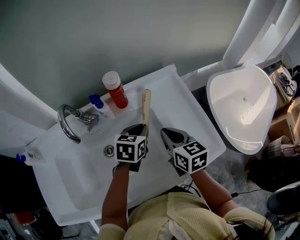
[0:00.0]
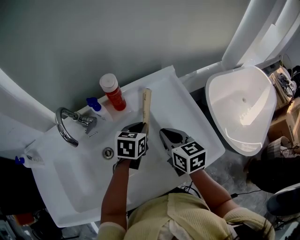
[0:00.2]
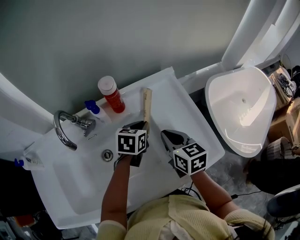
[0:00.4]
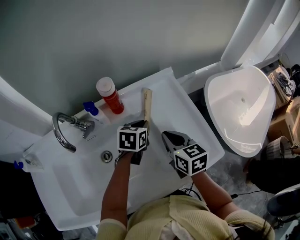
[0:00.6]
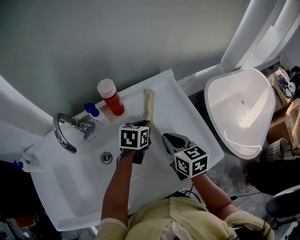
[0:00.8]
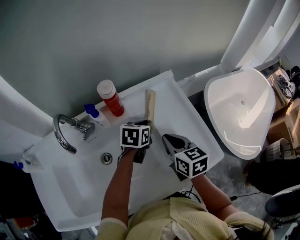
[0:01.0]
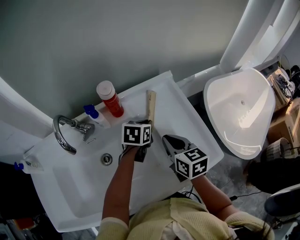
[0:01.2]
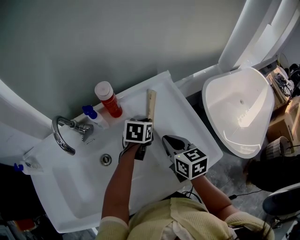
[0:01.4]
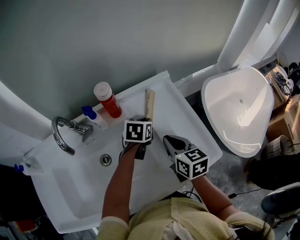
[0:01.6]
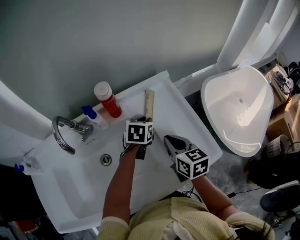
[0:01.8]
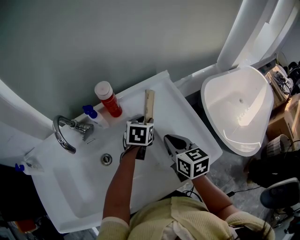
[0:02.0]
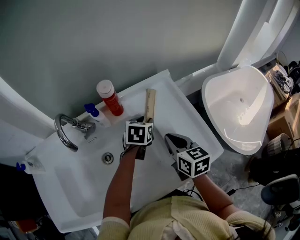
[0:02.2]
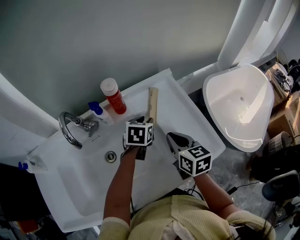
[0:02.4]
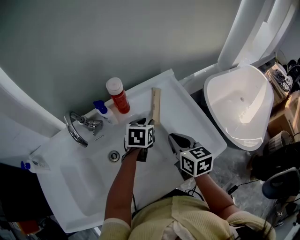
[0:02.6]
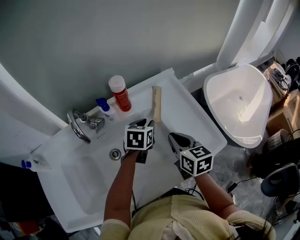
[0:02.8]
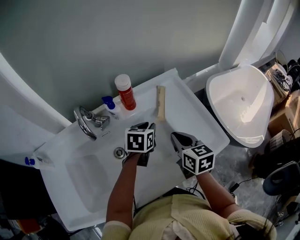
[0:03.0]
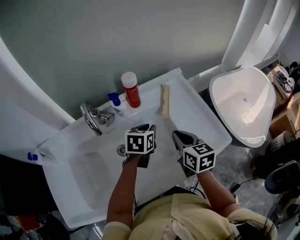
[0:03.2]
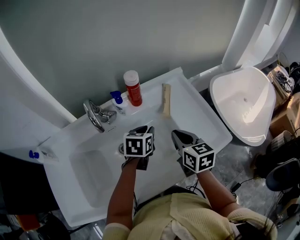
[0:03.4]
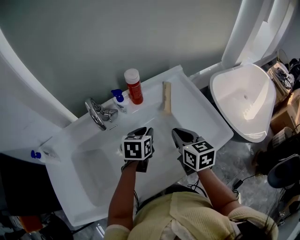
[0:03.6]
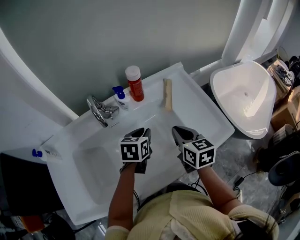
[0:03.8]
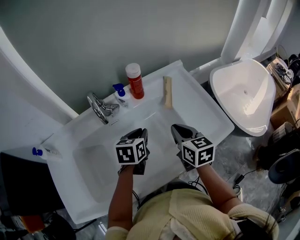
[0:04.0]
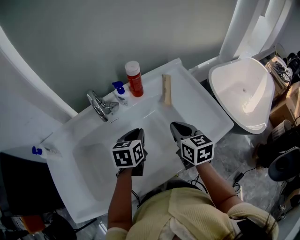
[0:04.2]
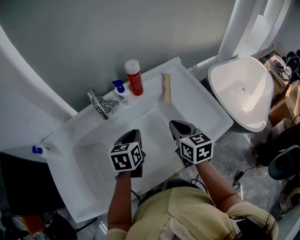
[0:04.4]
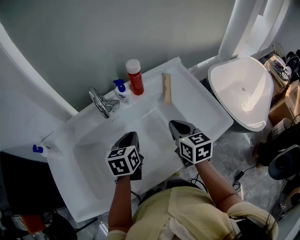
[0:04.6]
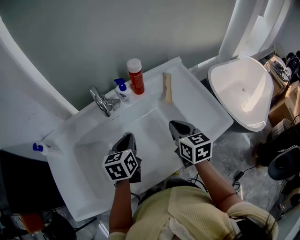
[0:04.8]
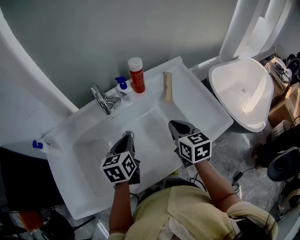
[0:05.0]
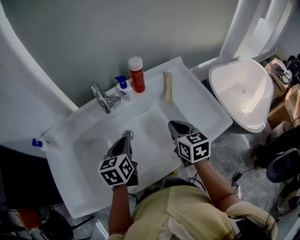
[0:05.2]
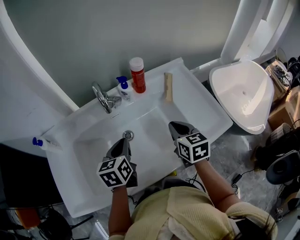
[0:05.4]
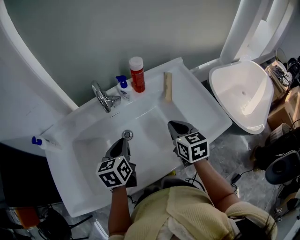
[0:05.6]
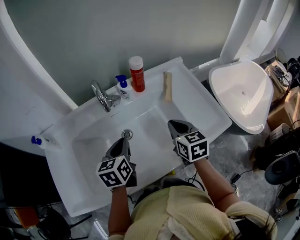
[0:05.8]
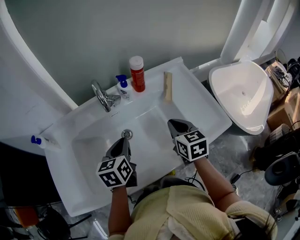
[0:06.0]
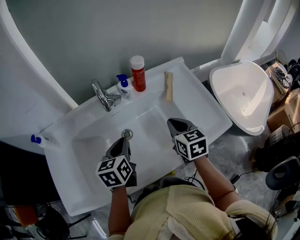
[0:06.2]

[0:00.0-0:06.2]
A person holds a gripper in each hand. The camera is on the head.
0:00.0 to 0:01.6: The left gripper is displaced forward by roughly 5 cm.
0:01.6 to 0:03.2: The left gripper goes some 10 cm backward and to the left. The right gripper changes place by about 5 cm.
0:03.2 to 0:04.6: The left gripper shifts roughly 15 cm to the left and backward. Meanwhile the right gripper changes place by approximately 5 cm.
0:04.6 to 0:06.2: The left gripper changes place by approximately 5 cm.

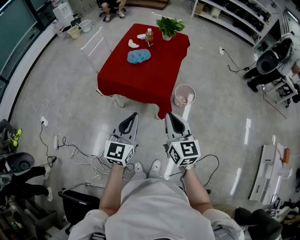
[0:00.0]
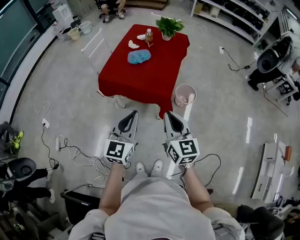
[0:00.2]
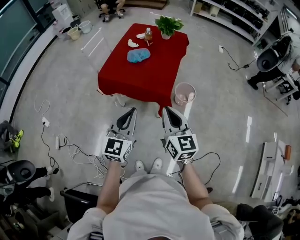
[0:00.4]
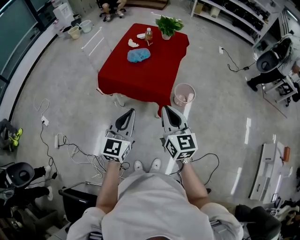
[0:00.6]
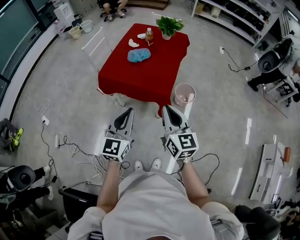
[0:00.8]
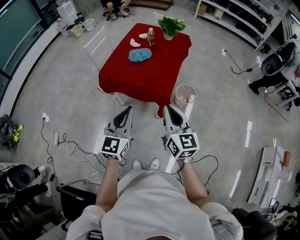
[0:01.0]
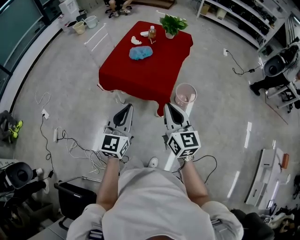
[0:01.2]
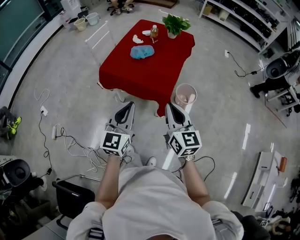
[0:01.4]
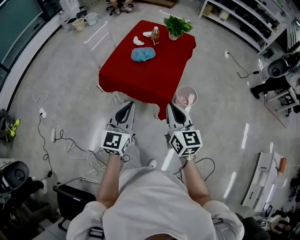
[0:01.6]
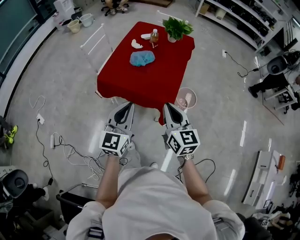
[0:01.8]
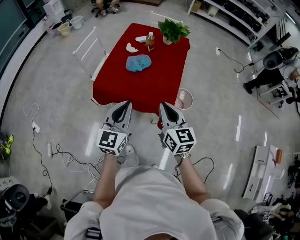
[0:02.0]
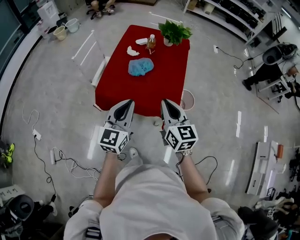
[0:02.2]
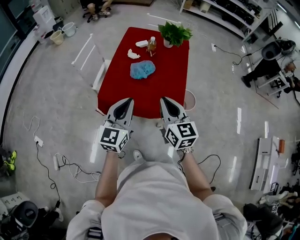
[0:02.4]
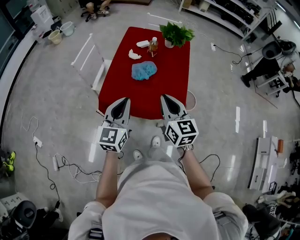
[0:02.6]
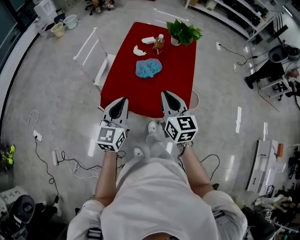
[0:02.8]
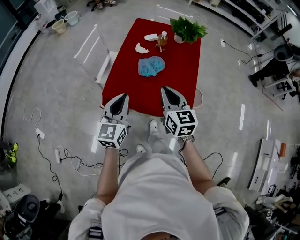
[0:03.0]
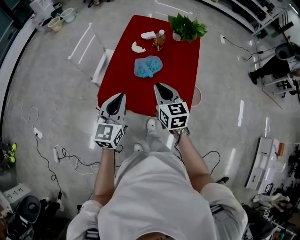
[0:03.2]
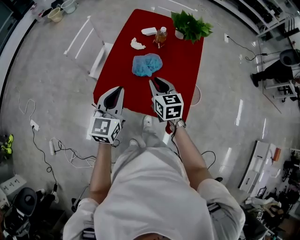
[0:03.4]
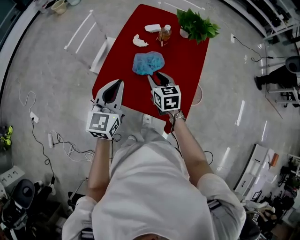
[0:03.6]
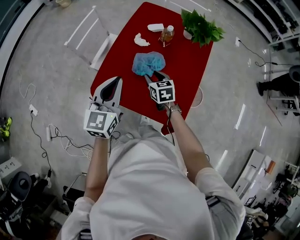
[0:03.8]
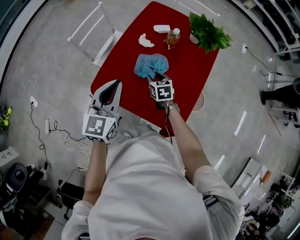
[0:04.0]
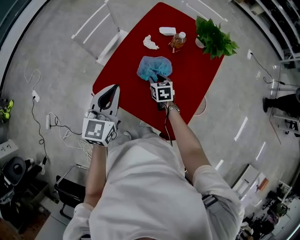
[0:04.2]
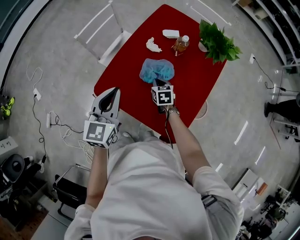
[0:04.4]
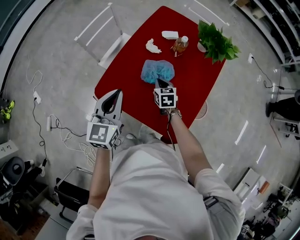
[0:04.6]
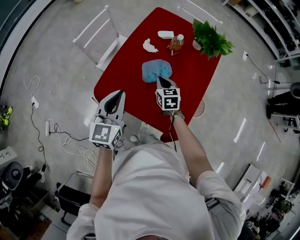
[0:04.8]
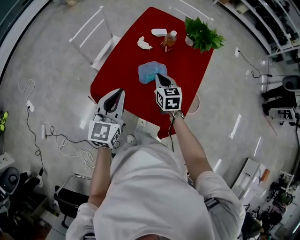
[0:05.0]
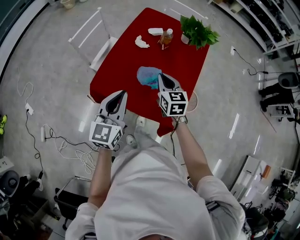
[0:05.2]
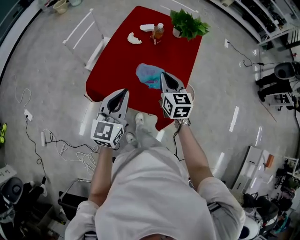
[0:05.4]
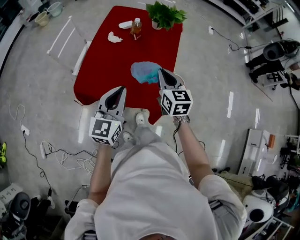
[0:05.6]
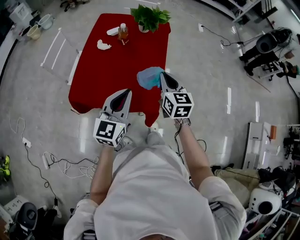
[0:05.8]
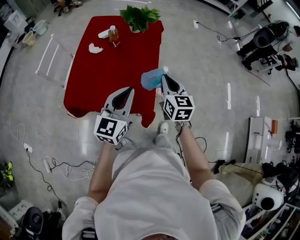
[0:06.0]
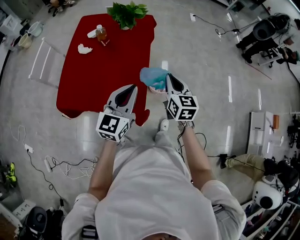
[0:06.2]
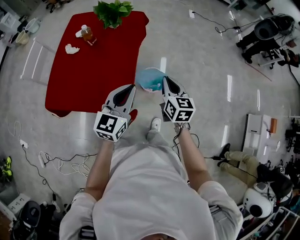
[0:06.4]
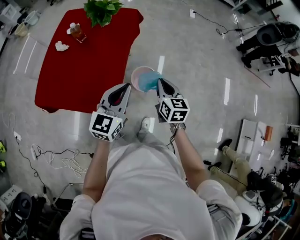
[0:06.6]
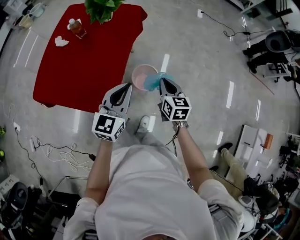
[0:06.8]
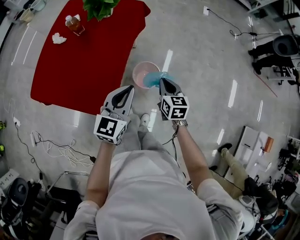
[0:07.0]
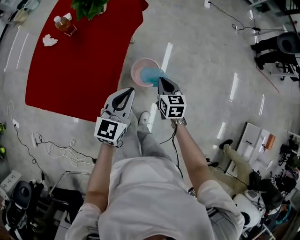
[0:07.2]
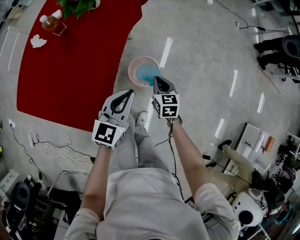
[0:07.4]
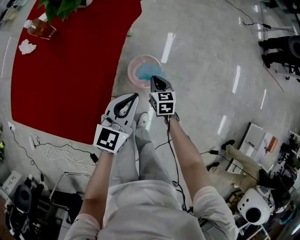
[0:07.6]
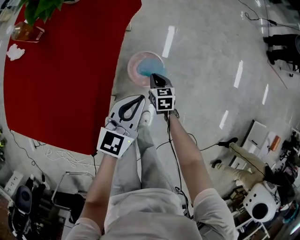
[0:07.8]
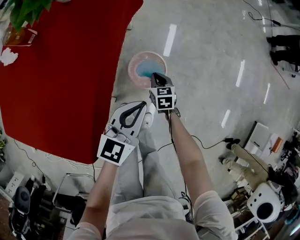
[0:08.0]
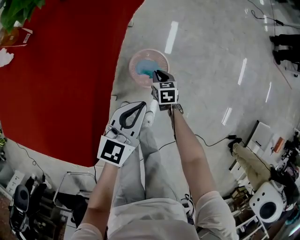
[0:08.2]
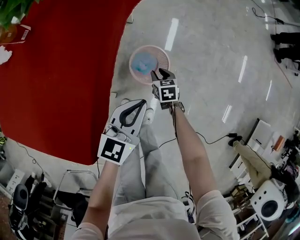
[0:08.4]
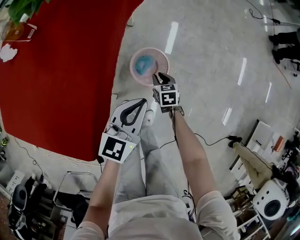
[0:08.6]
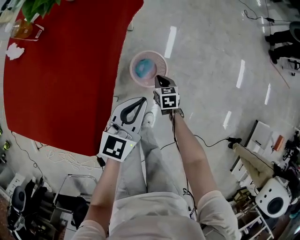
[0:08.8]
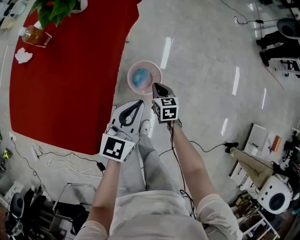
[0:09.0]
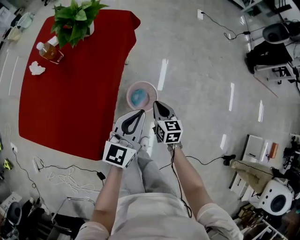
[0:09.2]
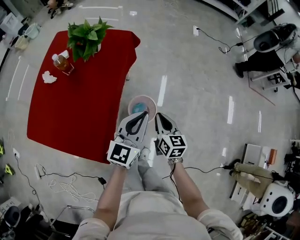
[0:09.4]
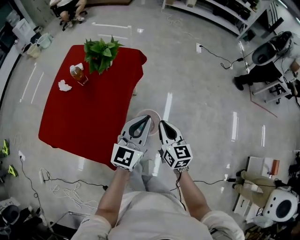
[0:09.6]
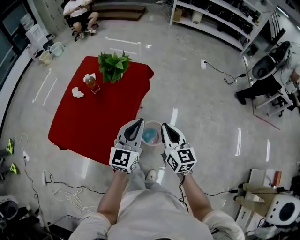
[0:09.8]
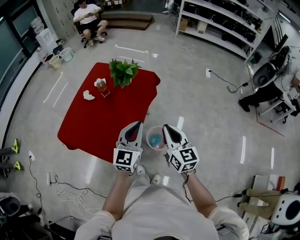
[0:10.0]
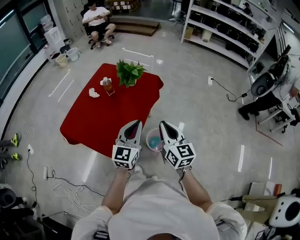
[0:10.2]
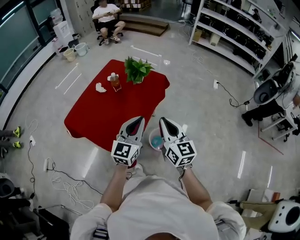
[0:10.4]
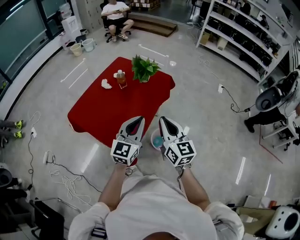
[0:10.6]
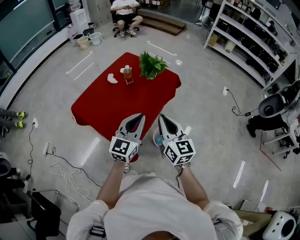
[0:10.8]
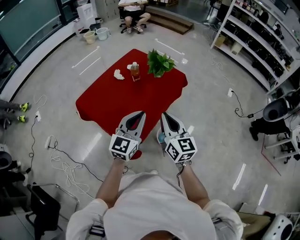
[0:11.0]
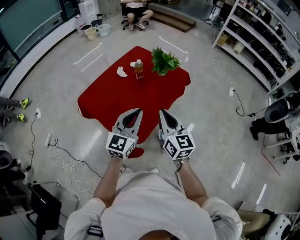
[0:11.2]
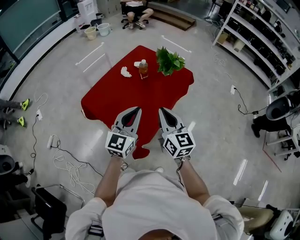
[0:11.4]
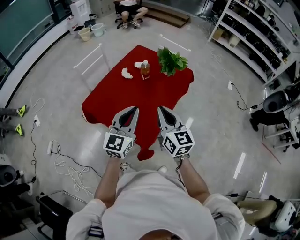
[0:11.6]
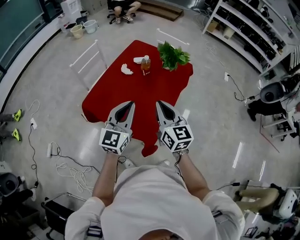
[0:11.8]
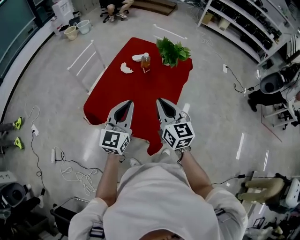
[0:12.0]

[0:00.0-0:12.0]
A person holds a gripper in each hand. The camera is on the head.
0:00.0 to 0:01.6: Both grippers move forward, approximately 5 cm.
0:01.6 to 0:03.0: The grippers both shift forward and to the left by some 30 cm.
0:03.0 to 0:04.4: The left gripper heads forward, covering about 10 cm, while the right gripper heads downward and forward, covering some 35 cm, tilts its fingers roughly 30 degrees downward, and opens, then closes once more.
0:04.4 to 0:06.0: The right gripper shifts by about 40 cm, and turns by some 40 degrees; the left gripper shifts by approximately 30 cm, and swivels about 30 degrees.
0:06.0 to 0:07.6: The left gripper goes some 40 cm to the right, downward and forward. The right gripper moves downward, to the right and forward, some 50 cm, and turns by roughly 30 degrees.
0:07.6 to 0:09.0: The left gripper goes downward and returns, about 10 cm each way. The right gripper travels downward and back again, some 20 cm each way, and opens, then closes again.
0:09.0 to 0:10.4: The left gripper shifts some 30 cm upward, and turns by some 30 degrees. Meanwhile the right gripper travels upward by about 50 cm, and angles its fingers upward, by about 40 degrees.
0:10.4 to 0:12.0: The two grippers go some 30 cm to the left.

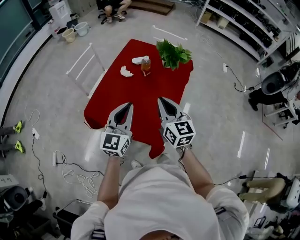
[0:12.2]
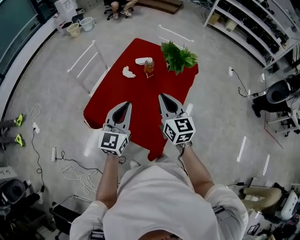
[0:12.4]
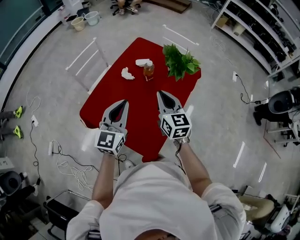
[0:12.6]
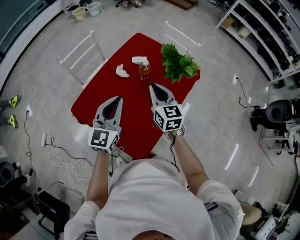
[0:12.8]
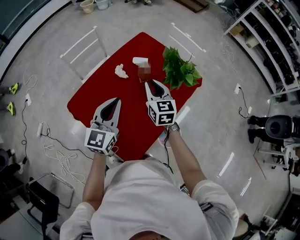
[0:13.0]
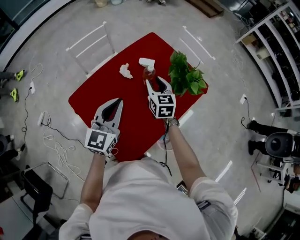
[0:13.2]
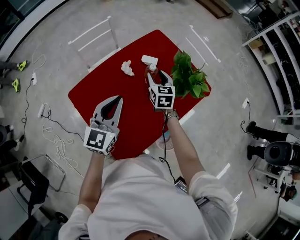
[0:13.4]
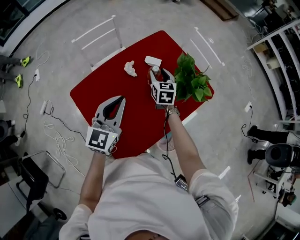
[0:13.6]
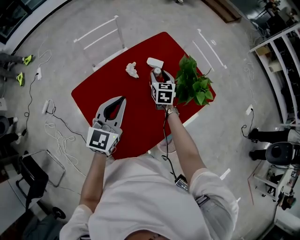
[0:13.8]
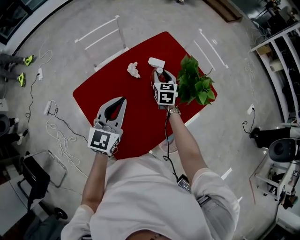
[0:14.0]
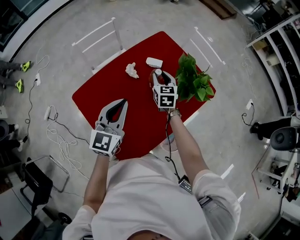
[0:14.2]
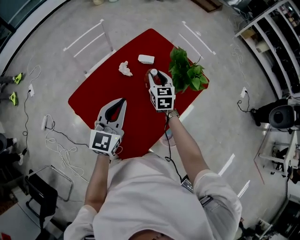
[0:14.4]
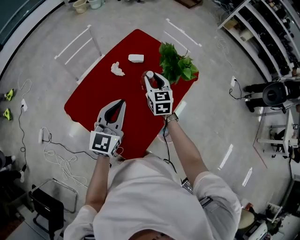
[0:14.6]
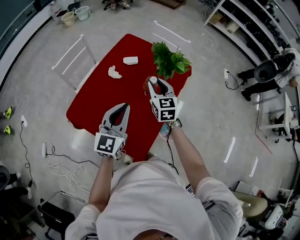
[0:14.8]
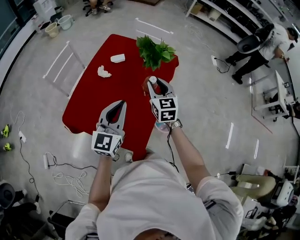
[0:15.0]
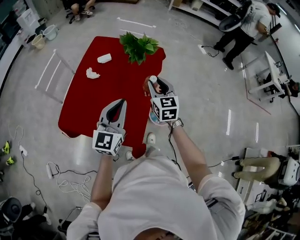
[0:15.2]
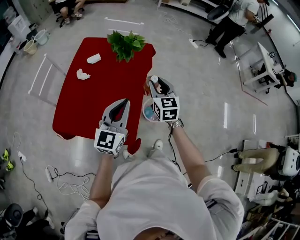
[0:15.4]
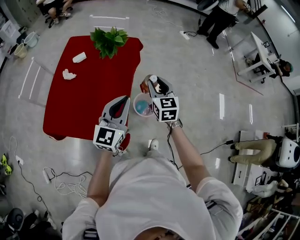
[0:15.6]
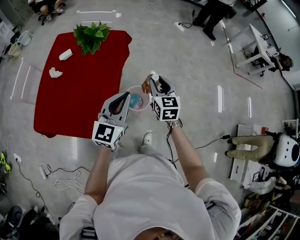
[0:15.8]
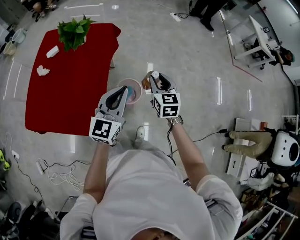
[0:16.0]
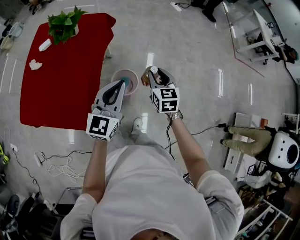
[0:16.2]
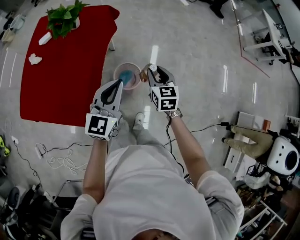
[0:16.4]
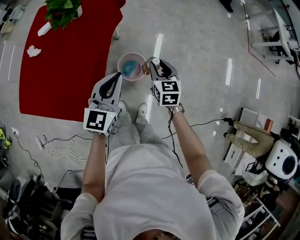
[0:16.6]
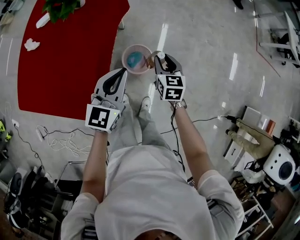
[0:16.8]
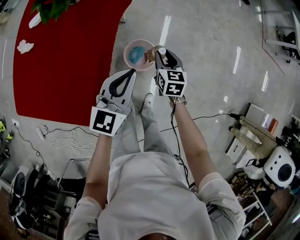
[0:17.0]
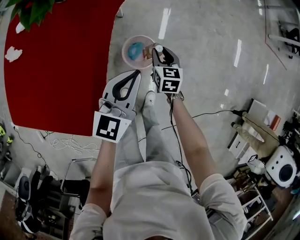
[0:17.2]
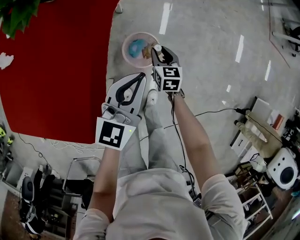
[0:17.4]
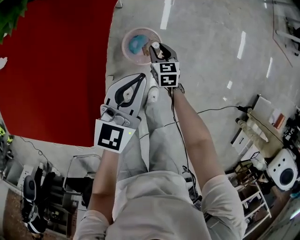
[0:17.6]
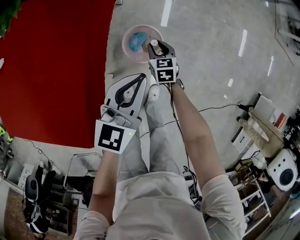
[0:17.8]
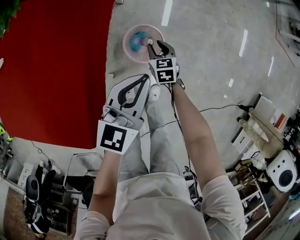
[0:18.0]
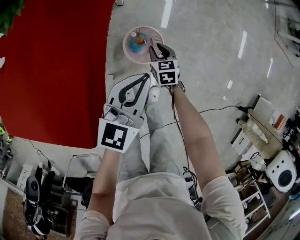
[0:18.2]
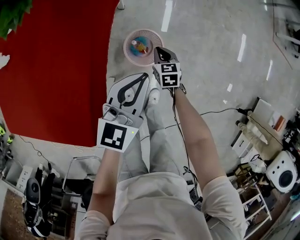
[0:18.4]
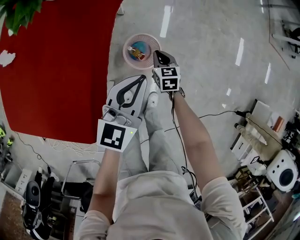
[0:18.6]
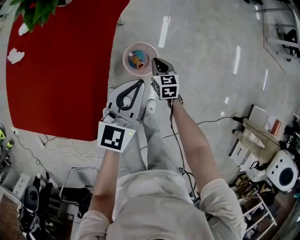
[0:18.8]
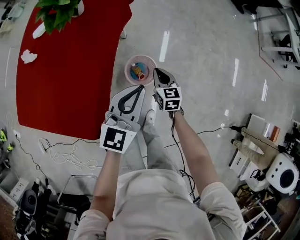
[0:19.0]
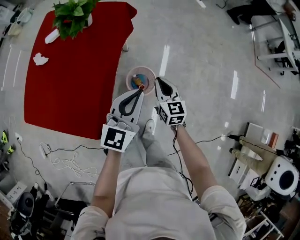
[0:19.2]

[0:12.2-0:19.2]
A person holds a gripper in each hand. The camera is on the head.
0:12.2 to 0:13.6: The right gripper goes roughly 40 cm forward and downward, turns by roughly 30 degrees, and opens up. The left gripper heads forward, covering some 15 cm, and turns by approximately 20 degrees.
0:13.6 to 0:15.0: The right gripper shifts by about 25 cm, and rotates some 30 degrees. The left gripper shifts by some 10 cm, and changes its angle by some 30 degrees.
0:15.0 to 0:16.4: Both grippers move to the right, some 40 cm. The right gripper turns by about 20 degrees.
0:16.4 to 0:17.8: The right gripper travels downward by roughly 35 cm; the left gripper is displaced downward by some 20 cm.
0:17.8 to 0:19.2: The right gripper goes approximately 30 cm upward, changes its angle by about 30 degrees, and closes its fingers, while the left gripper goes approximately 20 cm upward.
